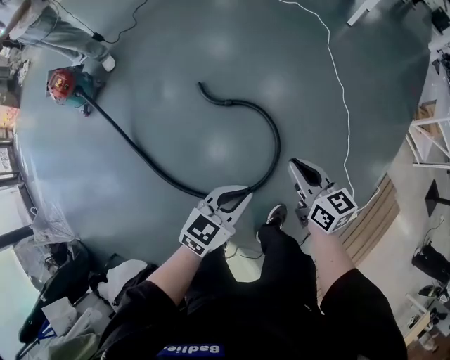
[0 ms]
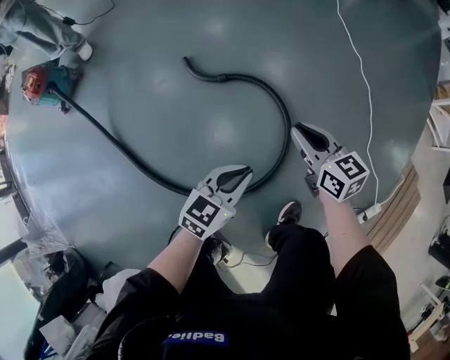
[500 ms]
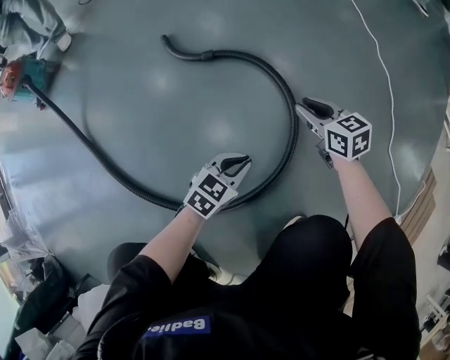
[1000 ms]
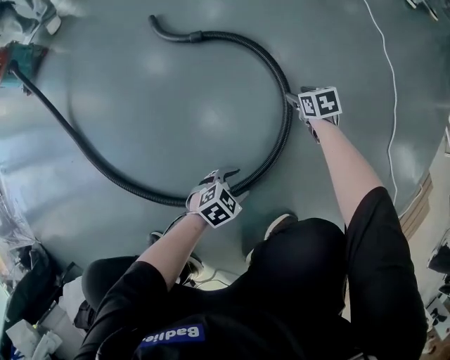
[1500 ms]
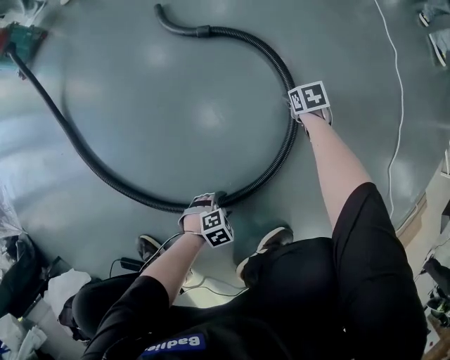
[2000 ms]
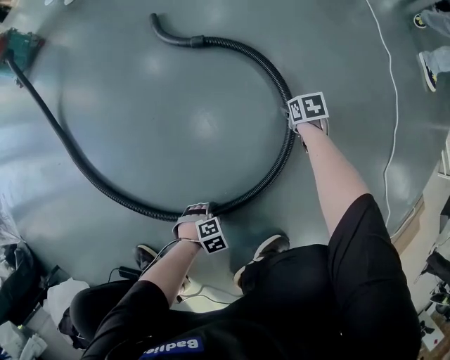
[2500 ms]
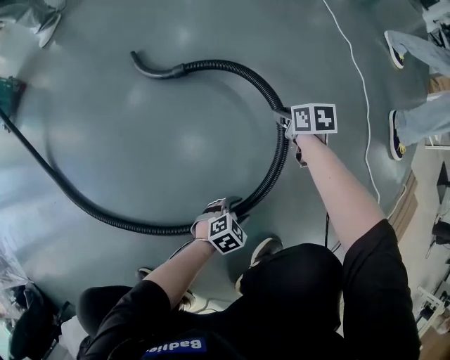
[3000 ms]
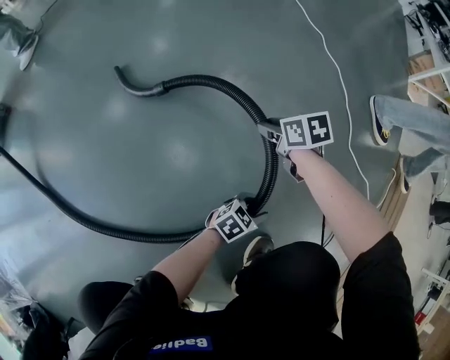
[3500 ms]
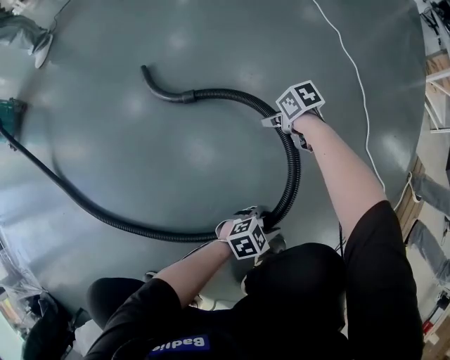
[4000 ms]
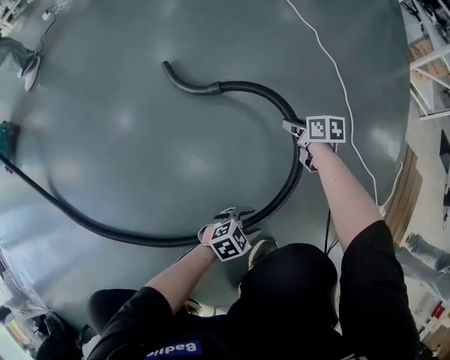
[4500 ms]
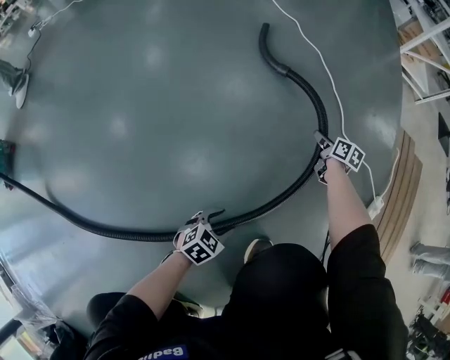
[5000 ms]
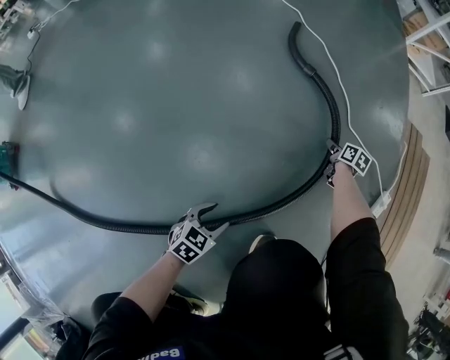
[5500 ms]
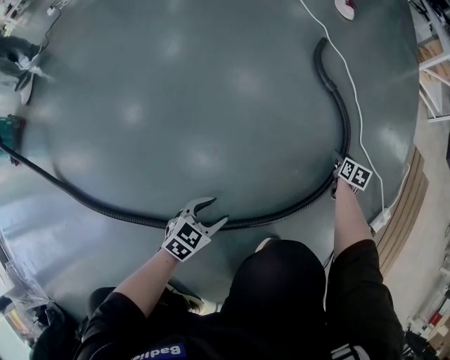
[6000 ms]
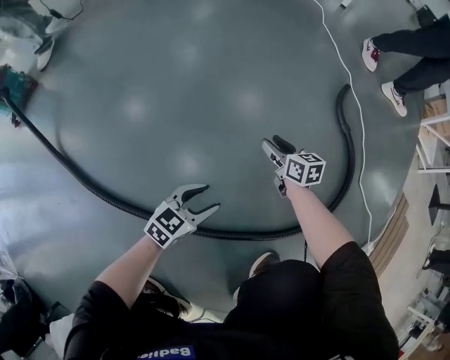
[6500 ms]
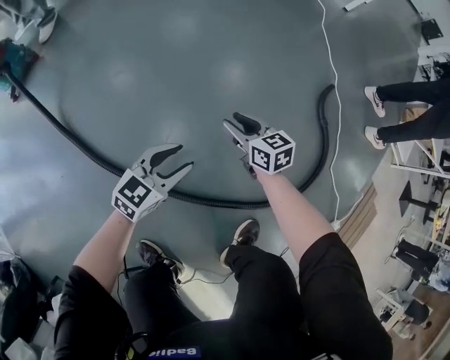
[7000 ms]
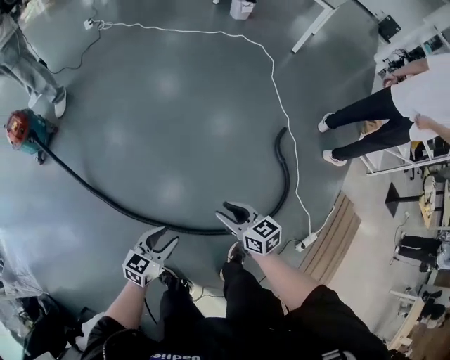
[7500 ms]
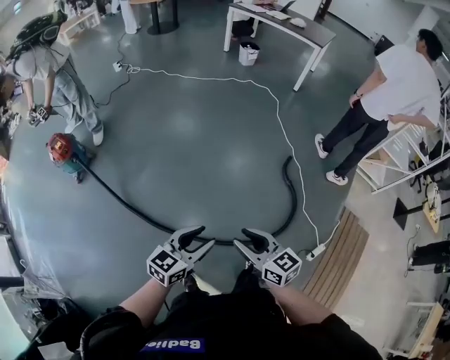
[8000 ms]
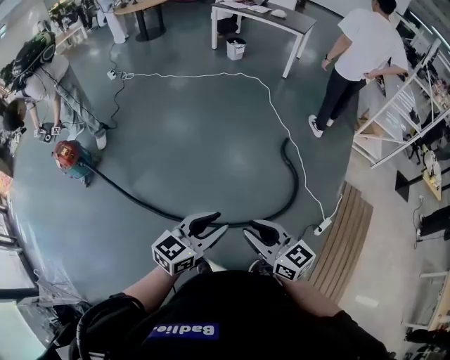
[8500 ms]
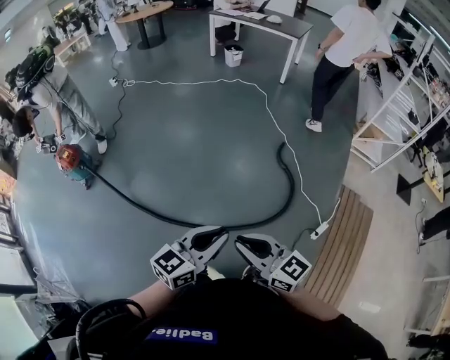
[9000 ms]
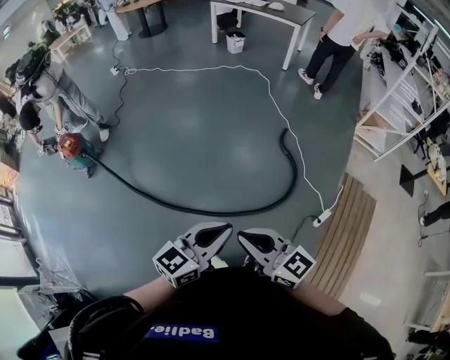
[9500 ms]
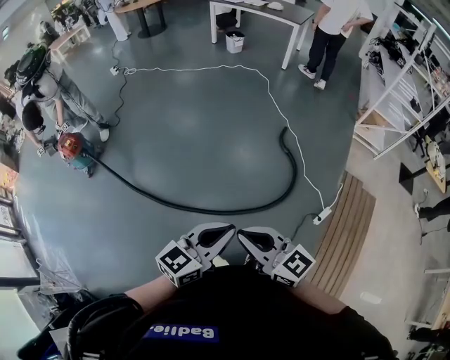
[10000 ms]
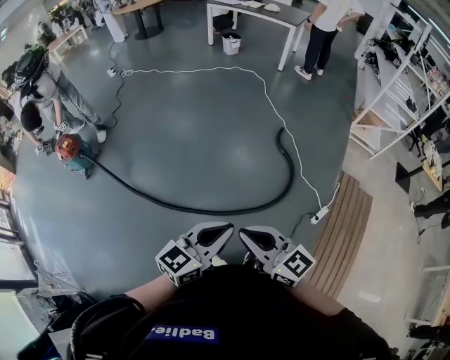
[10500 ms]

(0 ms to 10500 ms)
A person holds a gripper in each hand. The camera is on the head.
0 ms - 2000 ms: Both grippers move downward, some 80 cm. The left gripper points its fingers roughly 50 degrees further downward, and opens up. Meanwhile the right gripper angles its fingers downward, by about 50 degrees, and opens up.
2000 ms - 4000 ms: The right gripper is displaced upward by approximately 10 cm, and changes its angle by roughly 30 degrees, while the left gripper ends up about 25 cm from where it was, and tips its fingers upward by approximately 30 degrees.
4000 ms - 6500 ms: The right gripper goes approximately 5 cm upward, and turns by about 40 degrees, while the left gripper shifts by some 30 cm, and swivels some 30 degrees.
6500 ms - 8500 ms: The right gripper shifts some 1 m upward and backward, swivels approximately 30 degrees, and closes its fingers, while the left gripper is displaced upward by approximately 80 cm, and changes its angle by about 20 degrees.
8500 ms - 10500 ms: The right gripper travels backward by roughly 10 cm, and closes up. The left gripper moves backward and to the right, roughly 15 cm, and closes.

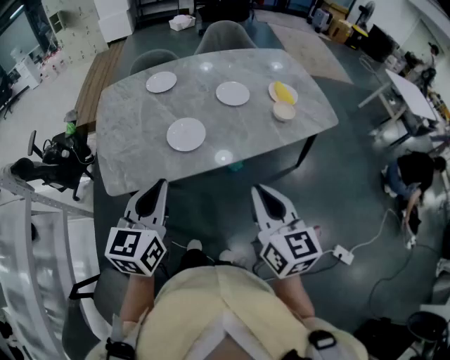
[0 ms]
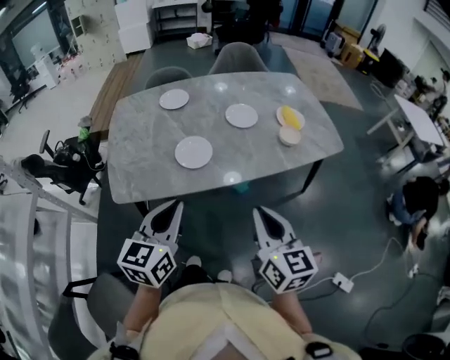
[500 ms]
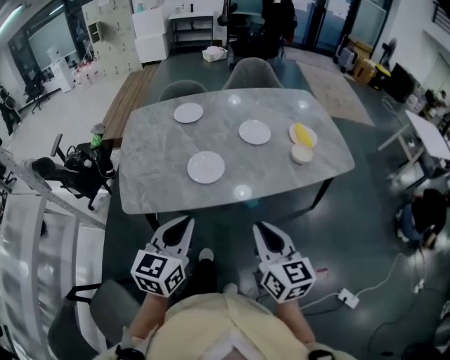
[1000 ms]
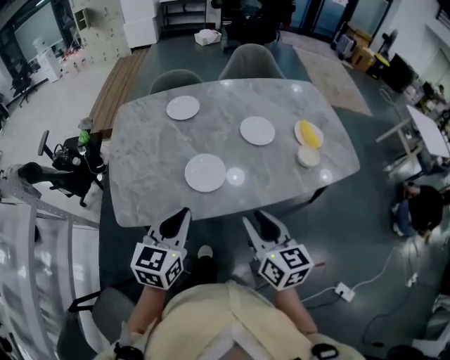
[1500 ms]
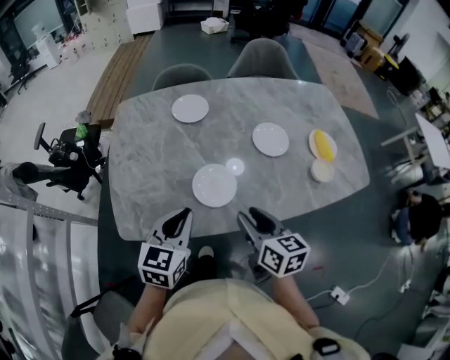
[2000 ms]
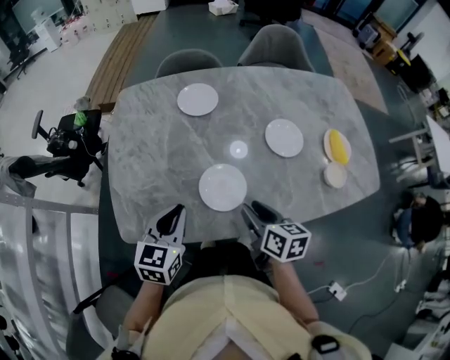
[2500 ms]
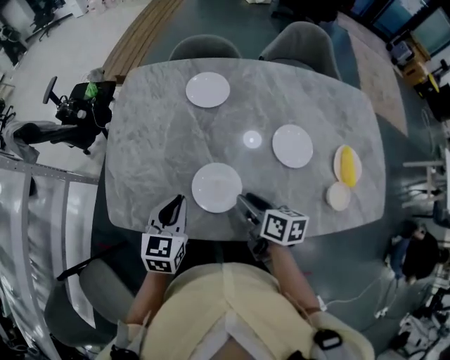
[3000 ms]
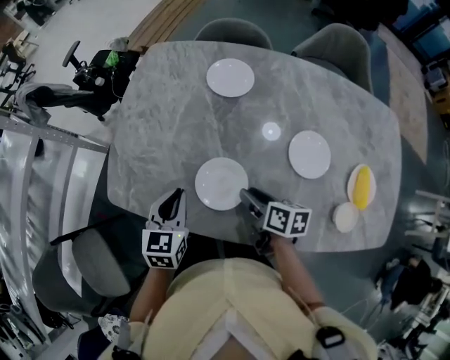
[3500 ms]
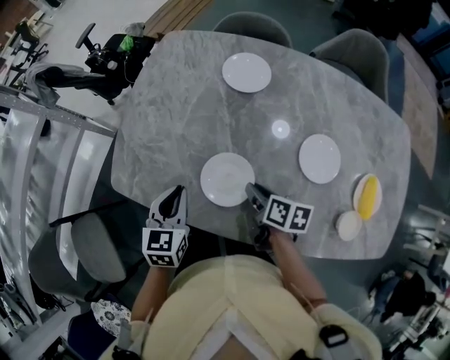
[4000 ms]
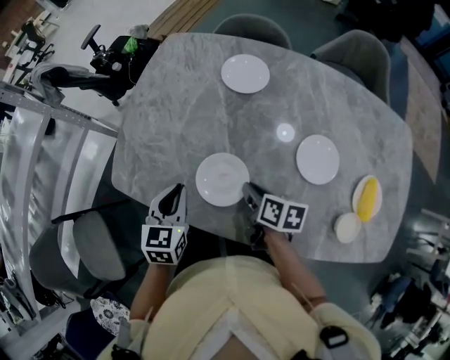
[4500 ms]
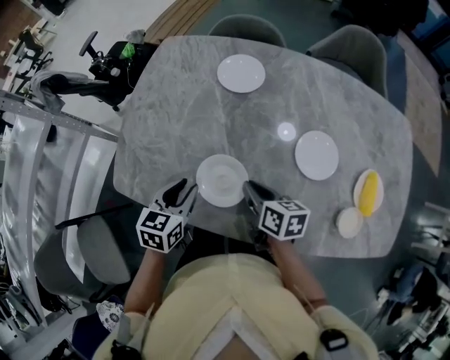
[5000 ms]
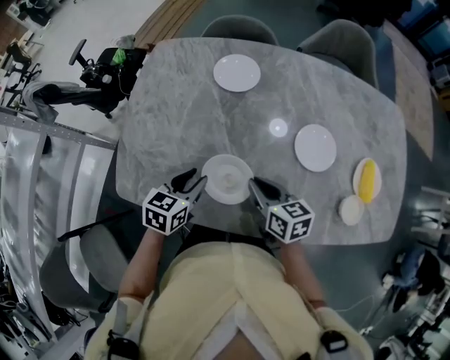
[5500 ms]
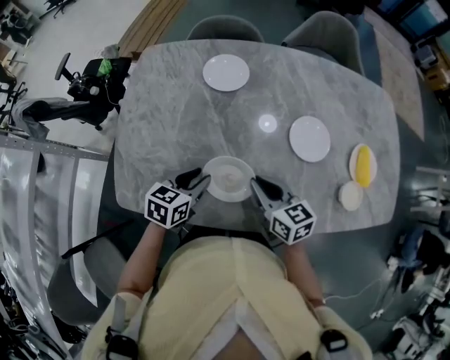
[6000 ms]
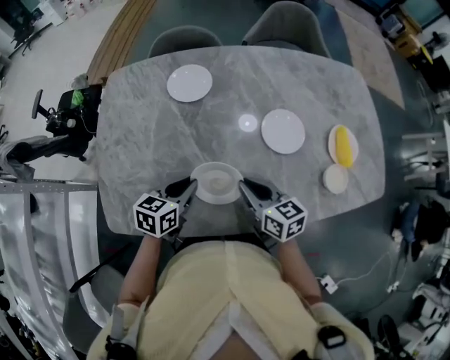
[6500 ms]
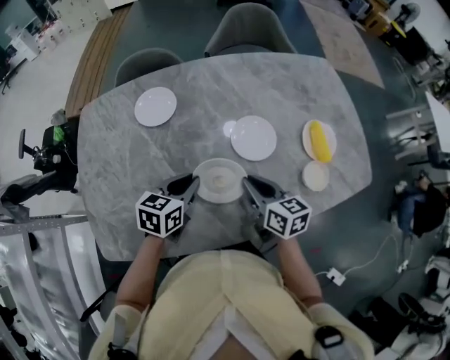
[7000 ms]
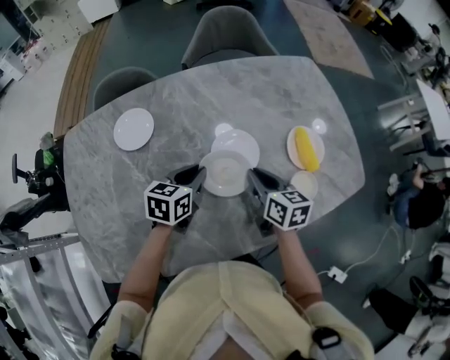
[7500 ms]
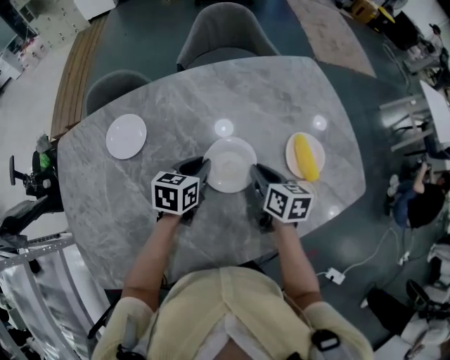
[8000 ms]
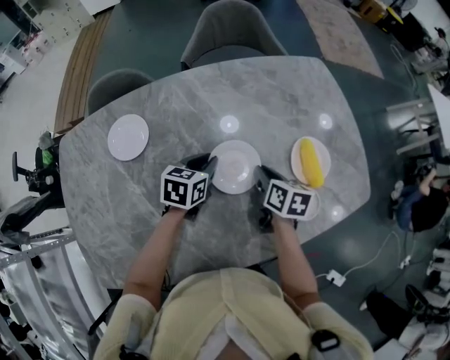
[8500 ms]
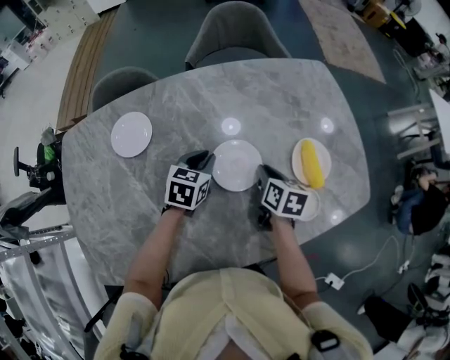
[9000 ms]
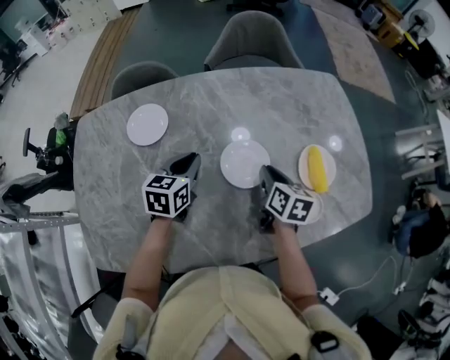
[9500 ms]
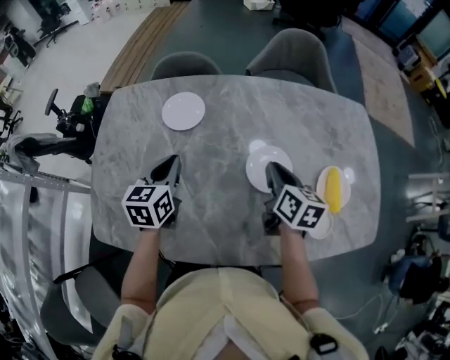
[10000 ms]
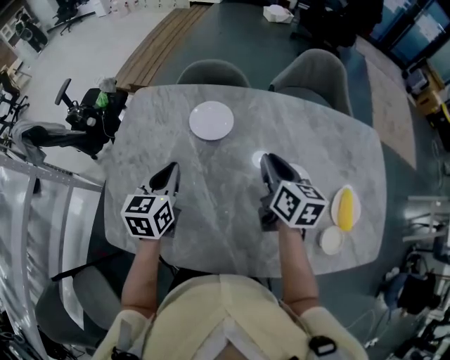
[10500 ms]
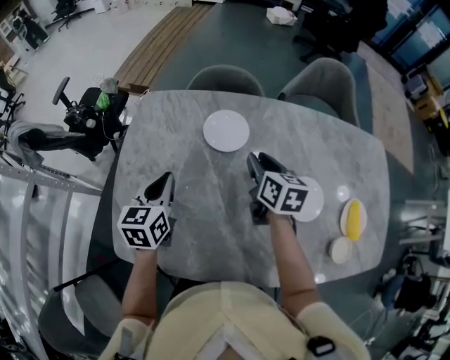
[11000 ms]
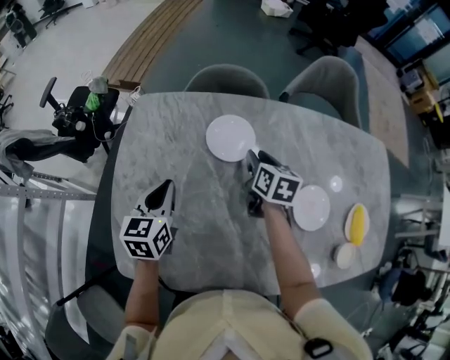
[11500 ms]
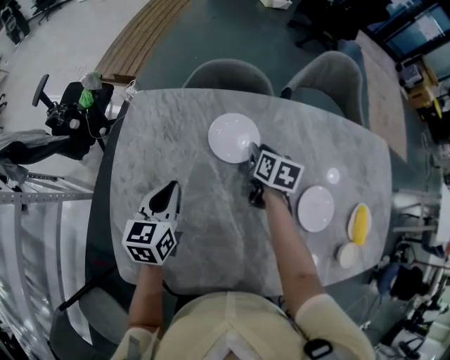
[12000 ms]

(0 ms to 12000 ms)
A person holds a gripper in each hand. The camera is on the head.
0 ms - 2000 ms: The left gripper heads forward and downward, covering roughly 20 cm. Meanwhile the right gripper travels forward, downward and to the left by roughly 25 cm, turns by about 30 degrees, and opens its fingers.
2000 ms - 4000 ms: Both grippers move downward, about 10 cm. The right gripper changes its angle by about 40 degrees. Meanwhile the left gripper rotates approximately 40 degrees.
4000 ms - 6000 ms: The right gripper is displaced upward by some 5 cm, and swivels about 40 degrees. Meanwhile the left gripper changes place by about 5 cm, rotates some 40 degrees, and opens its fingers.
6000 ms - 8000 ms: The right gripper is displaced to the right and forward by some 25 cm, and rotates approximately 40 degrees; the left gripper goes about 30 cm forward and to the right.
8000 ms - 10000 ms: The left gripper moves approximately 20 cm, and swivels some 40 degrees; the right gripper changes place by roughly 10 cm.
10000 ms - 12000 ms: The left gripper travels to the left by roughly 20 cm; the right gripper heads to the left, forward and downward, covering about 30 cm.

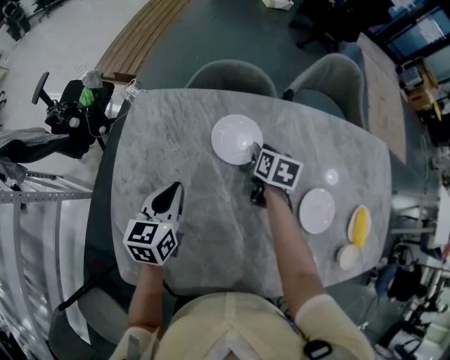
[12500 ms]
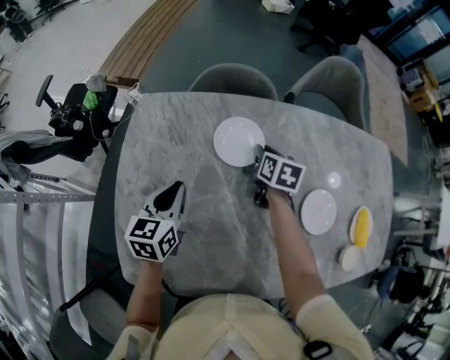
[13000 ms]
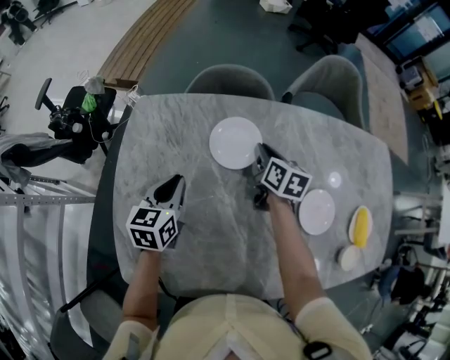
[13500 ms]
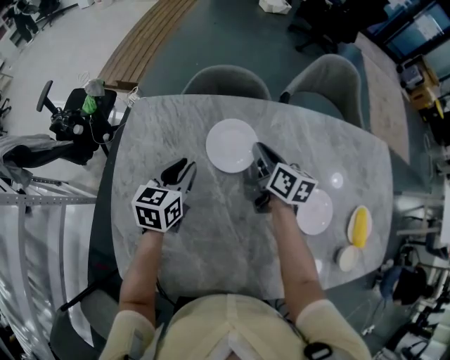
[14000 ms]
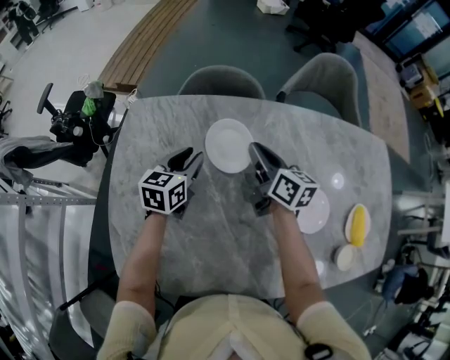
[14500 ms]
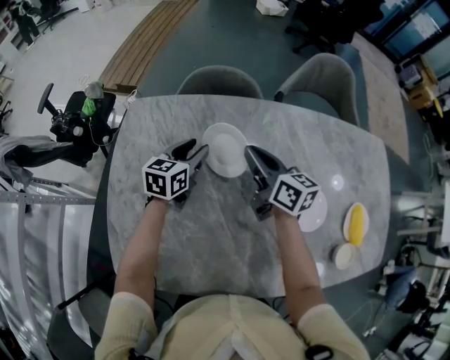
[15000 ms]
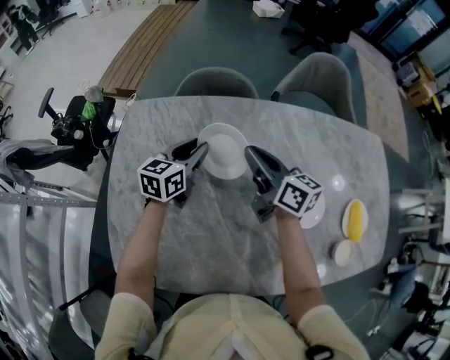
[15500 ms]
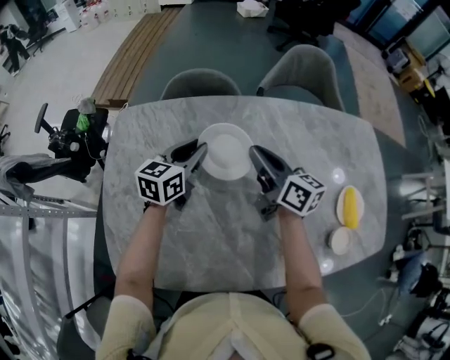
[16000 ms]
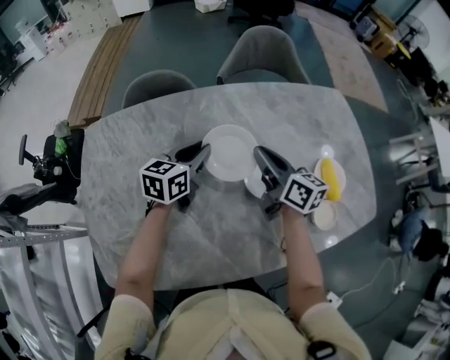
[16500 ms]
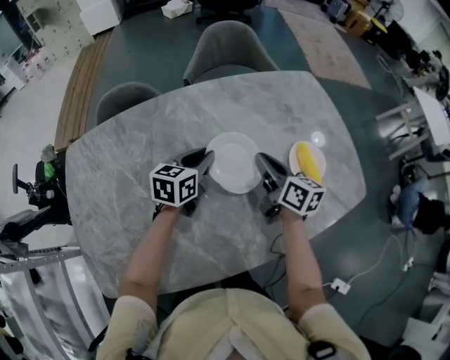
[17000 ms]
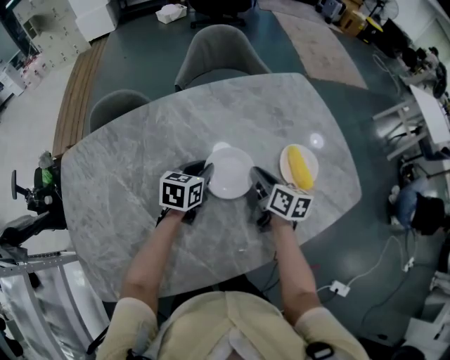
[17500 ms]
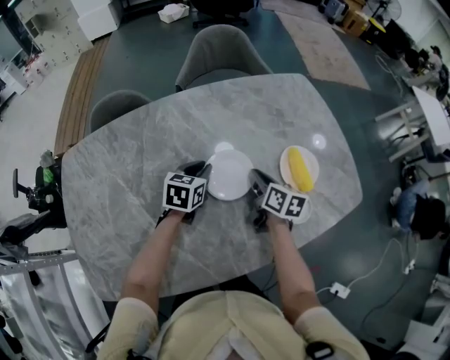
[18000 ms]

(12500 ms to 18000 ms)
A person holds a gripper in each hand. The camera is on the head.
12500 ms - 14500 ms: The left gripper shifts some 10 cm forward and to the right, and opens up, while the right gripper travels upward by roughly 10 cm, tilts its fingers roughly 30 degrees upward, and closes its fingers.
14500 ms - 16000 ms: The right gripper heads upward, backward and to the right, covering about 10 cm. The left gripper heads to the right and upward, covering some 10 cm.
16000 ms - 18000 ms: The right gripper shifts approximately 30 cm to the right and downward, and rotates about 40 degrees; the left gripper heads to the right, covering about 25 cm, and swivels about 30 degrees.
